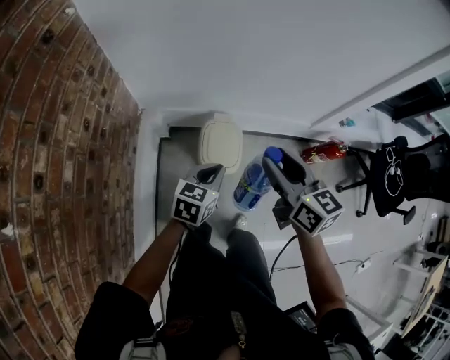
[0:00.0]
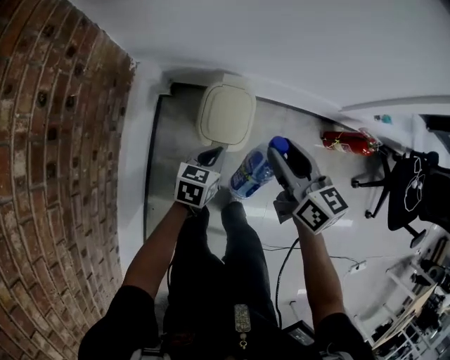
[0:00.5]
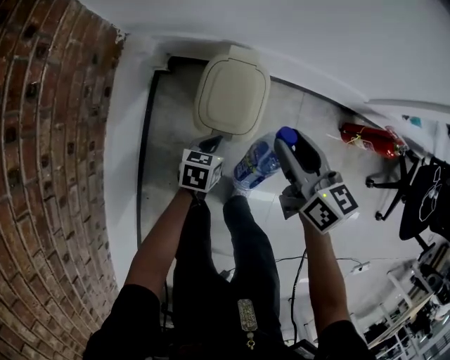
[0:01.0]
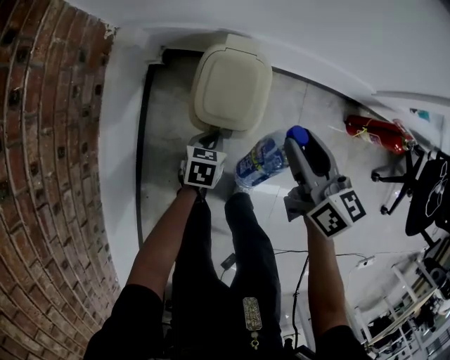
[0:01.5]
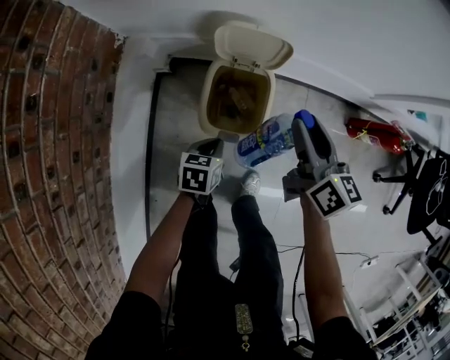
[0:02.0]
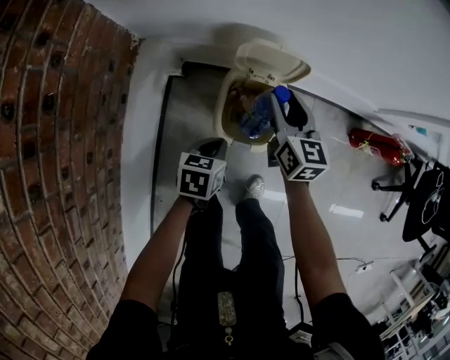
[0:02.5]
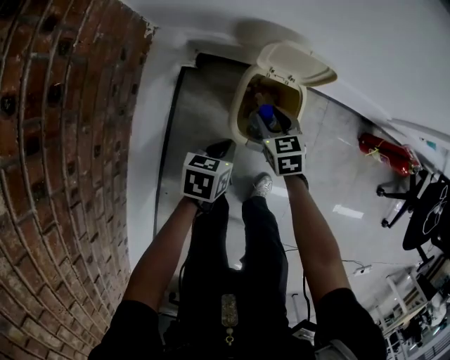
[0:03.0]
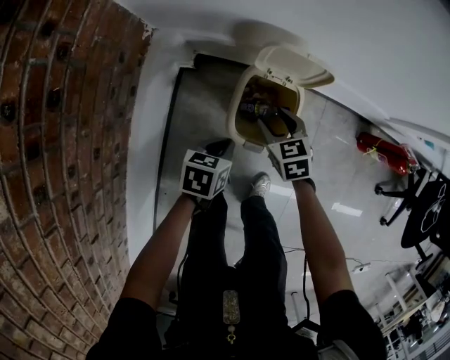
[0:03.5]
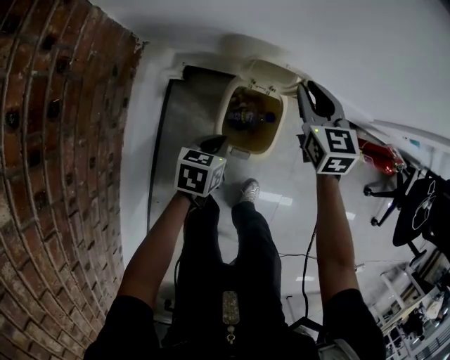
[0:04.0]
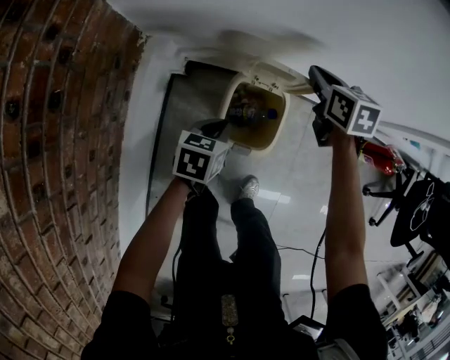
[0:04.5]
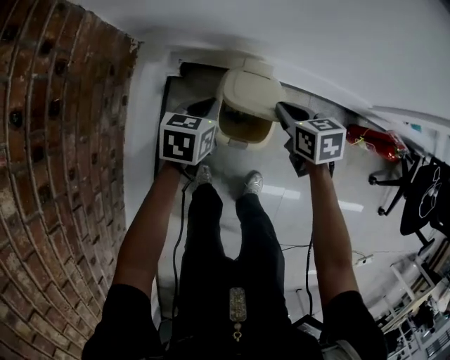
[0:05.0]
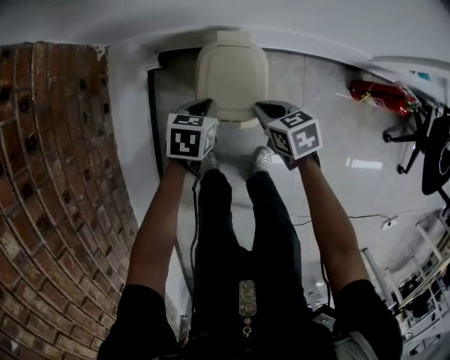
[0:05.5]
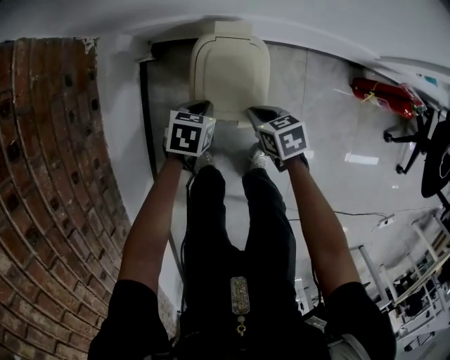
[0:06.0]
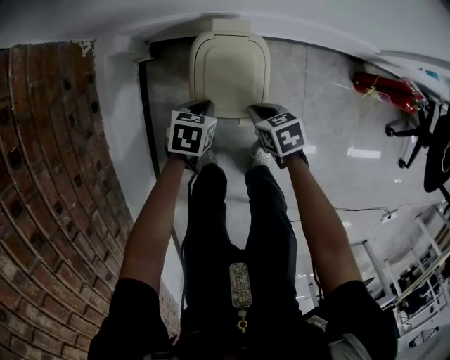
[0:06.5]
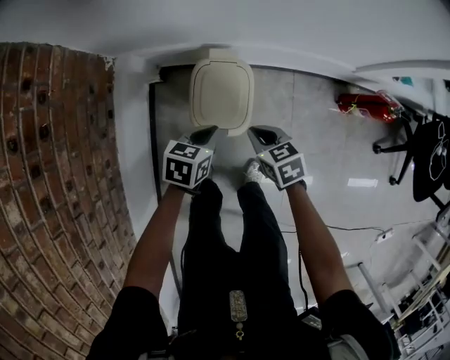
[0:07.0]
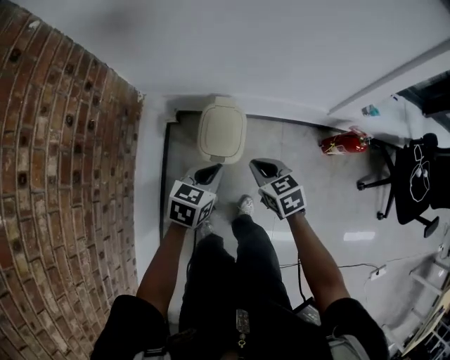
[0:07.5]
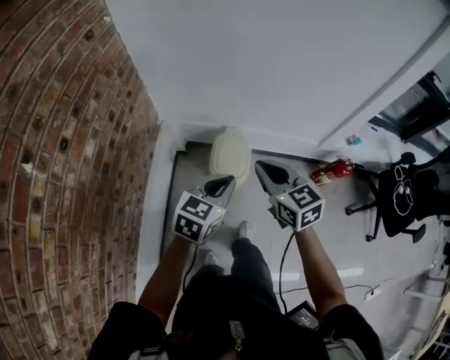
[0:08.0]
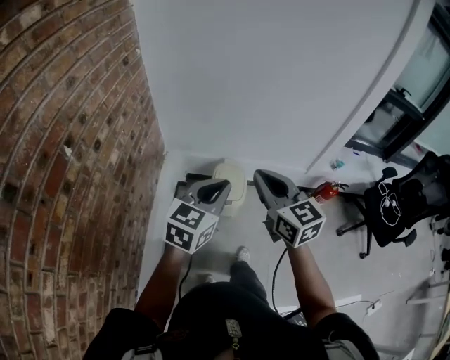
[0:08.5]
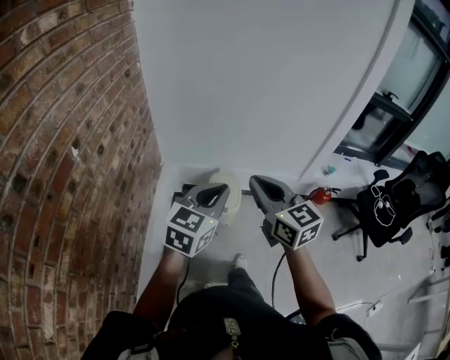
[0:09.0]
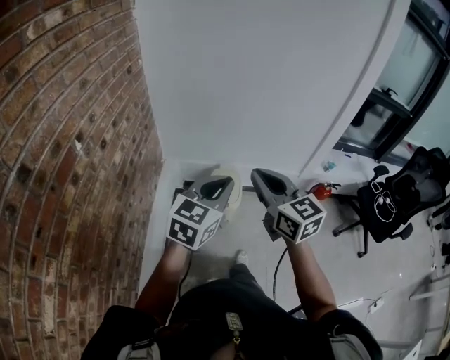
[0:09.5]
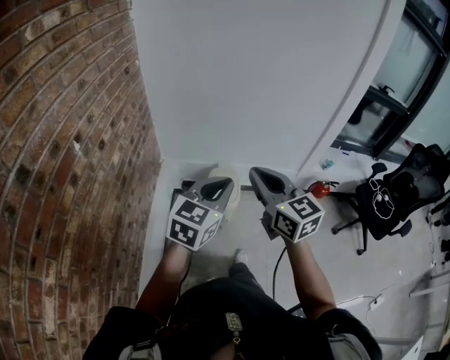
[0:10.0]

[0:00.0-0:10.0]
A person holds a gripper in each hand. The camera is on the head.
0:00.0 to 0:02.0: Both grippers move downward, approximately 35 cm. The left gripper rotates about 30 degrees.
0:02.0 to 0:04.0: The right gripper is displaced forward and to the left by approximately 15 cm, reaches about 20 cm downward, then returns, changes its angle by approximately 40 degrees, and closes. Meanwhile the left gripper heads upward and forward, covering about 10 cm.
0:04.0 to 0:06.0: The right gripper goes approximately 30 cm downward and backward, and swivels some 40 degrees. Meanwhile the left gripper goes about 10 cm downward.
0:06.0 to 0:08.0: Both grippers travel together upward, roughly 50 cm. The left gripper tilts its fingers roughly 40 degrees upward. The right gripper angles its fingers upward, by about 30 degrees.
0:08.0 to 0:10.0: Both grippers move upward and backward, roughly 20 cm.

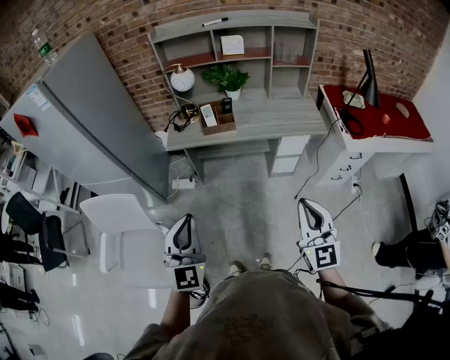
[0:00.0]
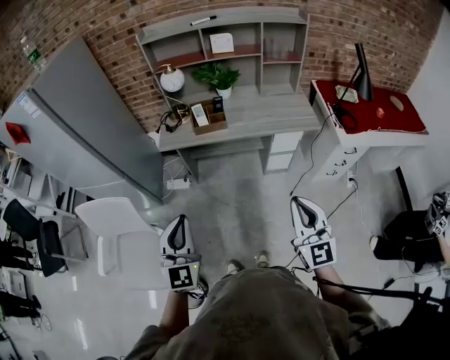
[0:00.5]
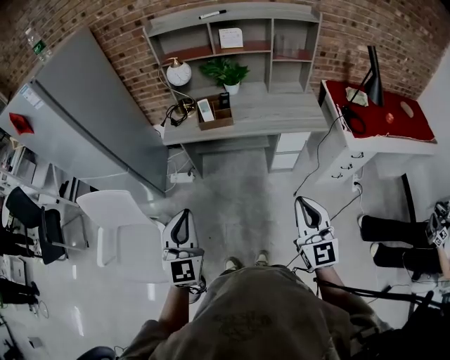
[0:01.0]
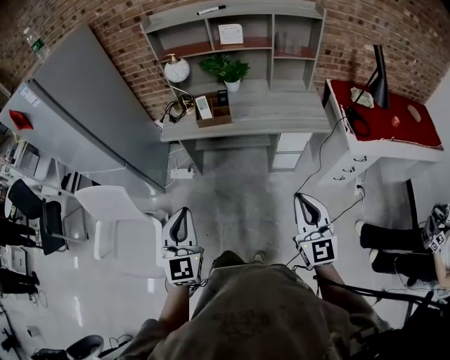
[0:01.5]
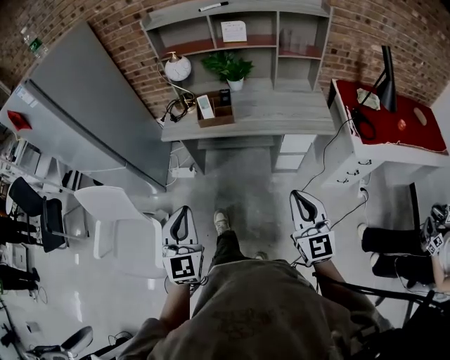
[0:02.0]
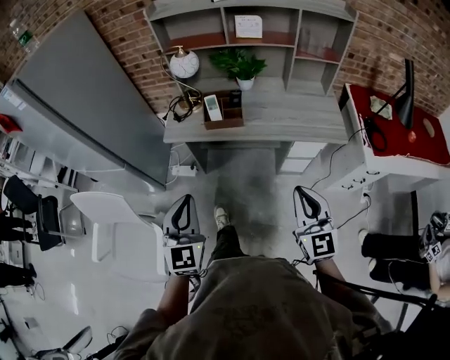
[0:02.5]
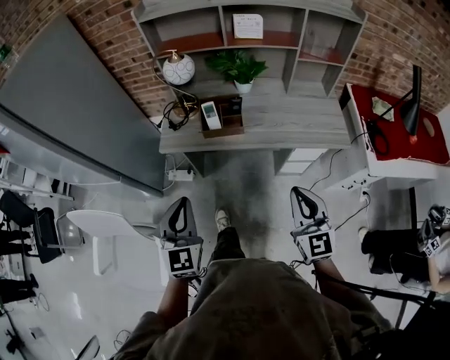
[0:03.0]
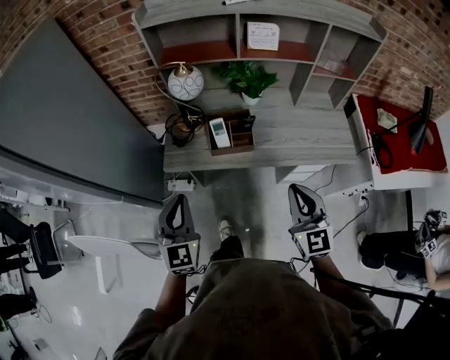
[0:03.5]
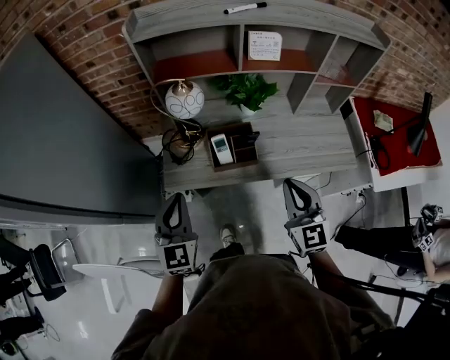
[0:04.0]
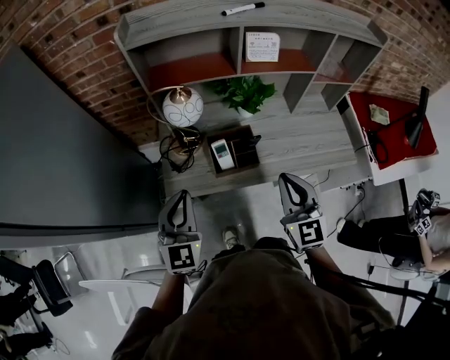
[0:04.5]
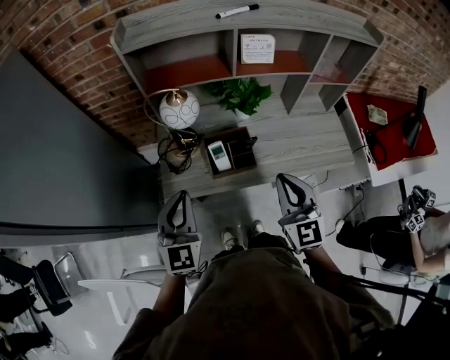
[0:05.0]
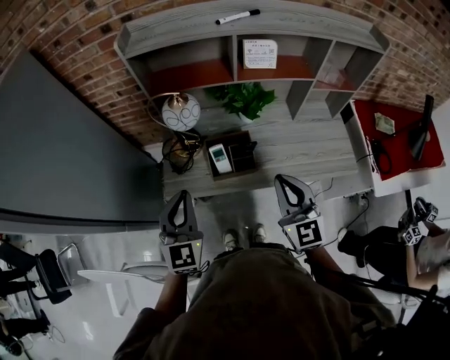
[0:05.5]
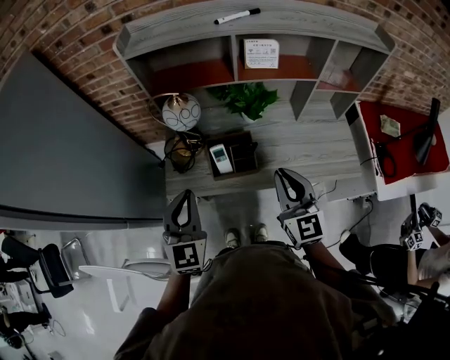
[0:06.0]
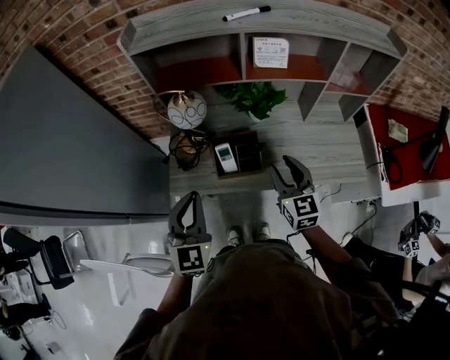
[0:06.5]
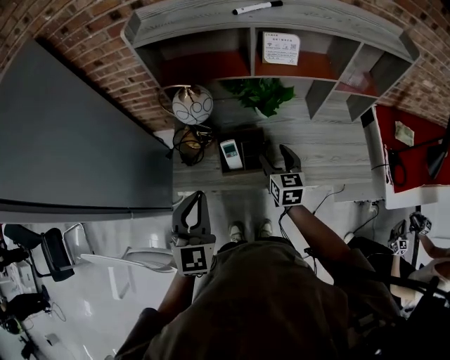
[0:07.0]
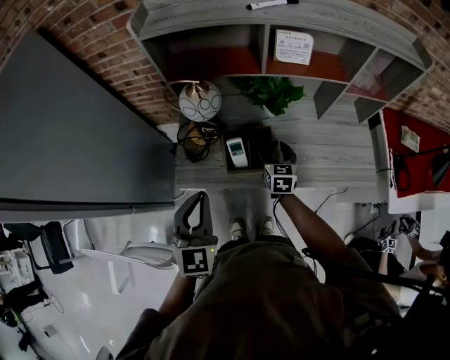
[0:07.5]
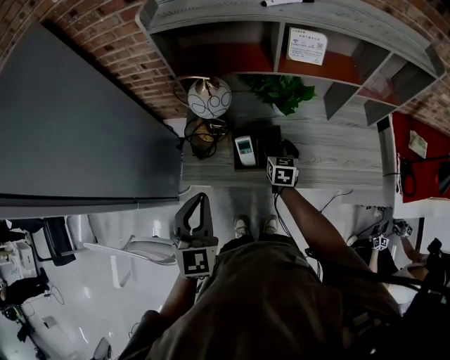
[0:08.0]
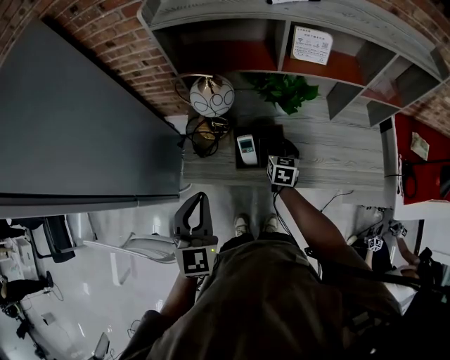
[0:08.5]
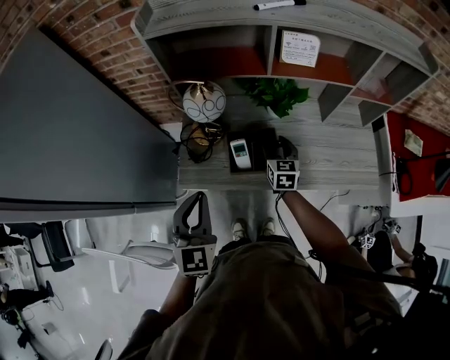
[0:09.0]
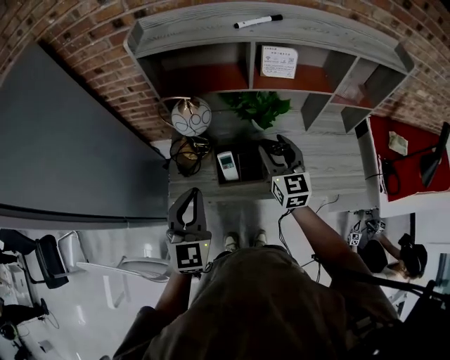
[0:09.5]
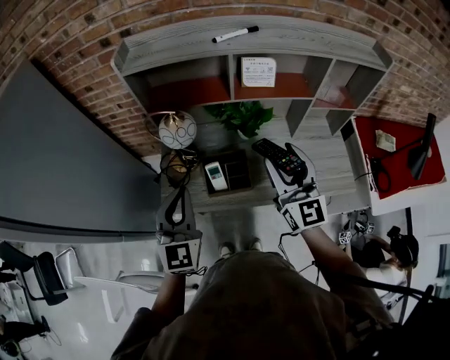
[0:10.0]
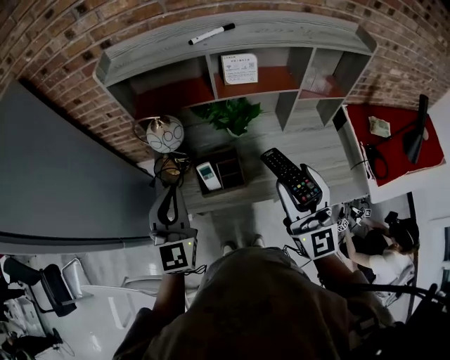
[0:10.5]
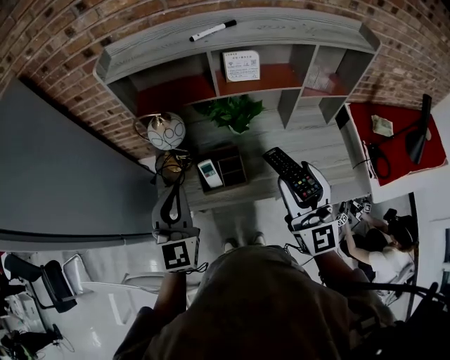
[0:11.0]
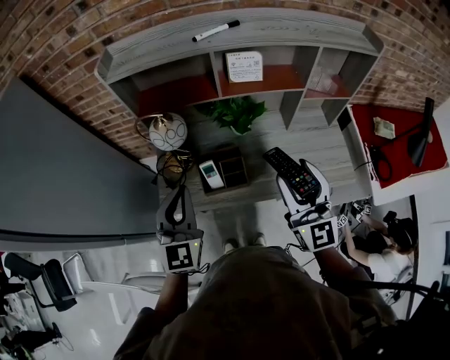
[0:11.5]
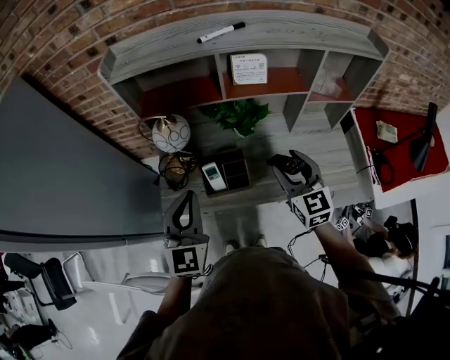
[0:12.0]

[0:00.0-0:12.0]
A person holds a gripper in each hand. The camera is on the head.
0:00.0 to 0:02.0: The left gripper moves downward, to the right and forward, approximately 10 cm. The right gripper heads forward, to the right and downward, covering about 10 cm.
0:02.0 to 0:04.0: Both grippers move forward, some 40 cm.
0:04.0 to 0:06.0: The right gripper heads forward, covering about 5 cm, while the left gripper shifts approximately 5 cm to the right.
0:06.0 to 0:08.0: The right gripper travels downward and forward by roughly 30 cm, tilts its fingers about 30 degrees downward, and opens its fingers.
0:08.0 to 0:10.0: The left gripper shifts about 5 cm upward. Meanwhile the right gripper shifts approximately 35 cm upward, and tilts its fingers approximately 50 degrees upward.
0:10.0 to 0:12.0: The right gripper is displaced downward by about 10 cm, and turns by about 20 degrees.

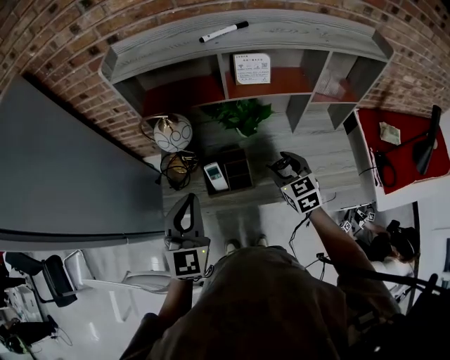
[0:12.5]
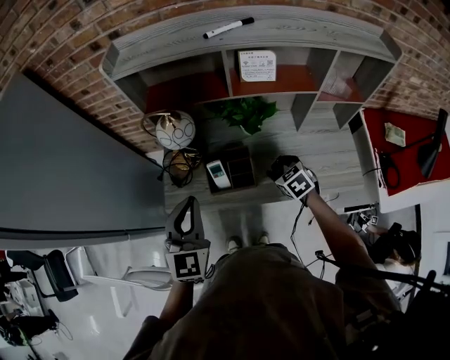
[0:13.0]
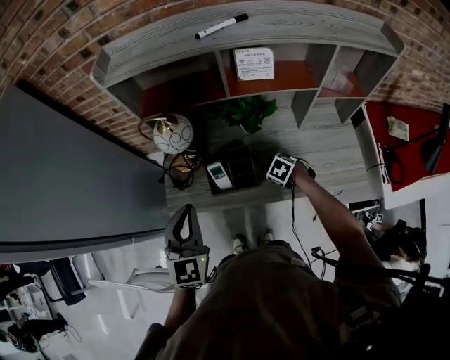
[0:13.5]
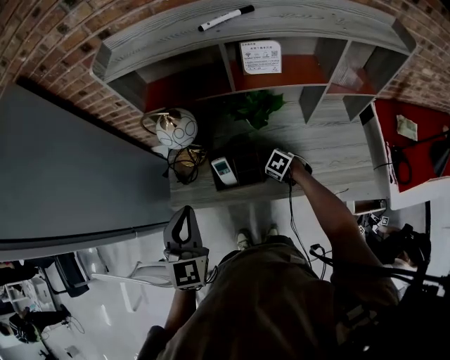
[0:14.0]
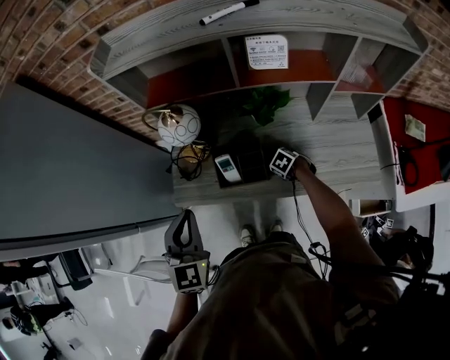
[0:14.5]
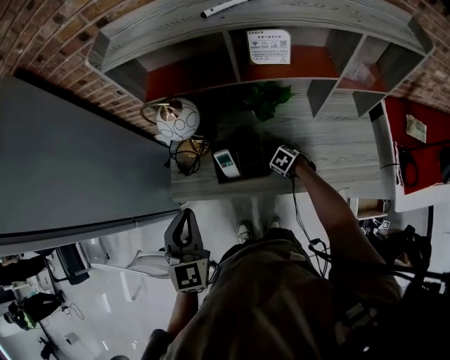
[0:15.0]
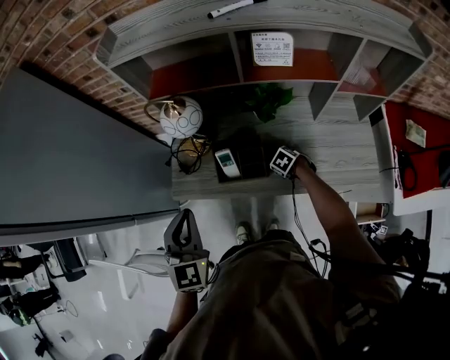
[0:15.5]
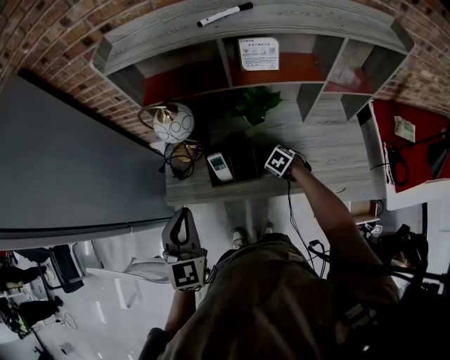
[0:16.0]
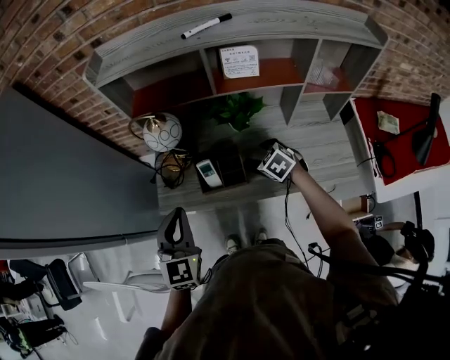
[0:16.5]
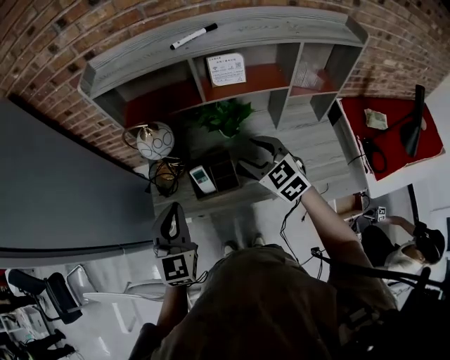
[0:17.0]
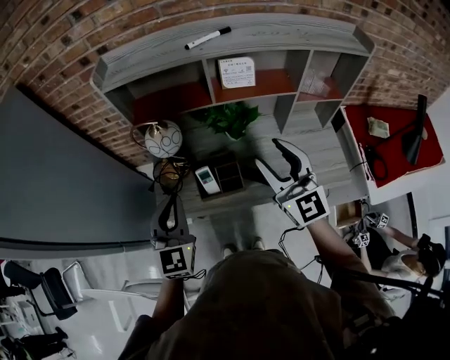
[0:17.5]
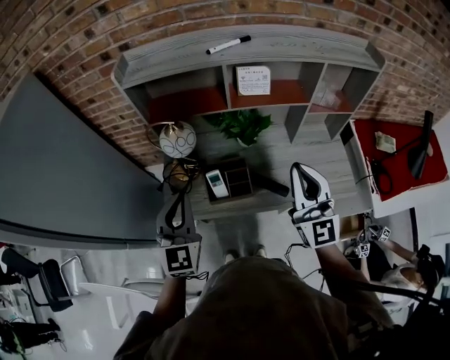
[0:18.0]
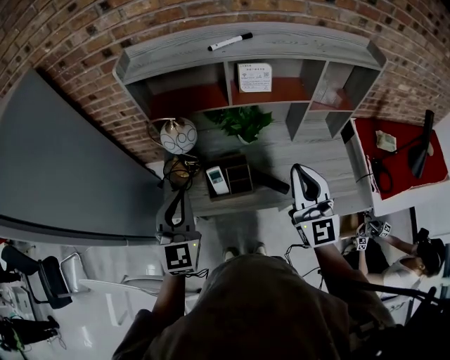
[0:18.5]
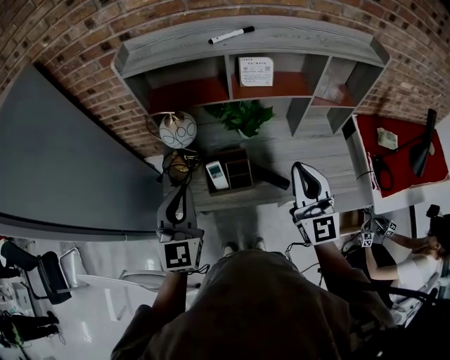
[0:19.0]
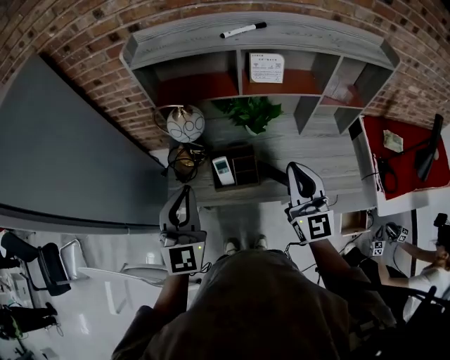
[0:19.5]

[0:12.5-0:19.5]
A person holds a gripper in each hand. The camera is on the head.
0:12.5 to 0:14.5: The left gripper moves some 5 cm. The right gripper is displaced downward by some 30 cm, and points its fingers some 50 degrees further downward.
0:14.5 to 0:16.0: The right gripper changes place by approximately 5 cm.
0:16.0 to 0:17.5: The right gripper goes some 40 cm upward, and points its fingers some 80 degrees further upward. Meanwhile the left gripper shifts by approximately 5 cm.
0:17.5 to 0:19.5: The right gripper ends up about 5 cm from where it was, and closes its fingers.
